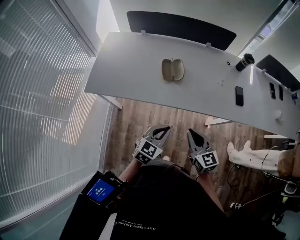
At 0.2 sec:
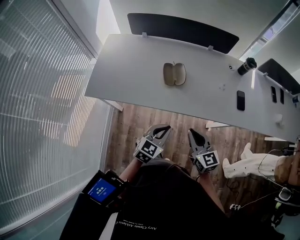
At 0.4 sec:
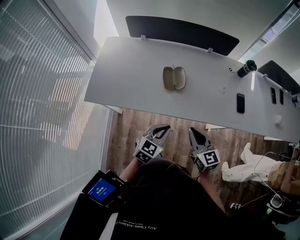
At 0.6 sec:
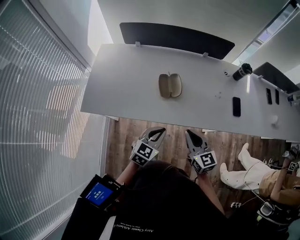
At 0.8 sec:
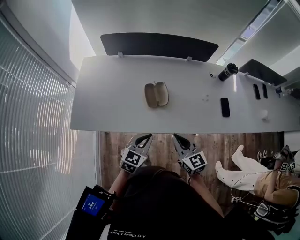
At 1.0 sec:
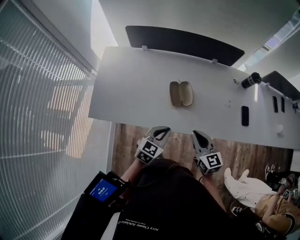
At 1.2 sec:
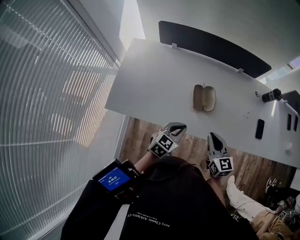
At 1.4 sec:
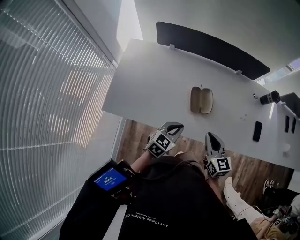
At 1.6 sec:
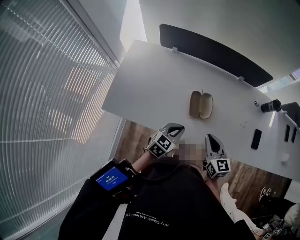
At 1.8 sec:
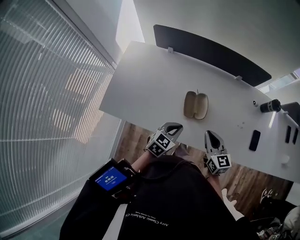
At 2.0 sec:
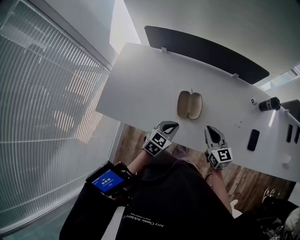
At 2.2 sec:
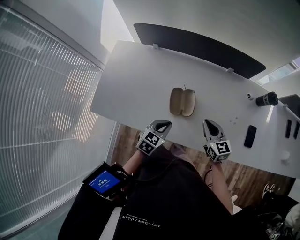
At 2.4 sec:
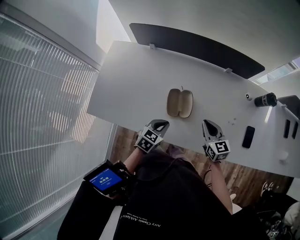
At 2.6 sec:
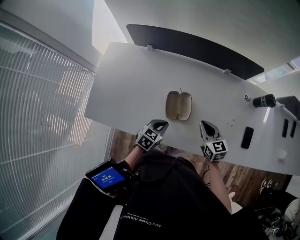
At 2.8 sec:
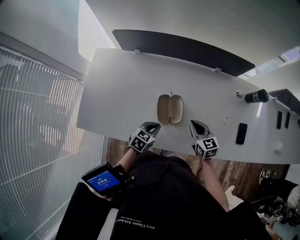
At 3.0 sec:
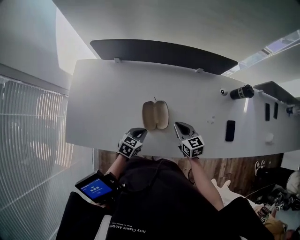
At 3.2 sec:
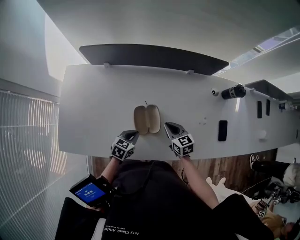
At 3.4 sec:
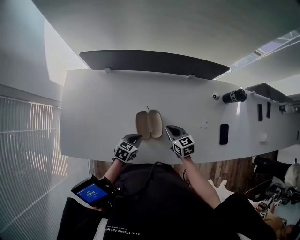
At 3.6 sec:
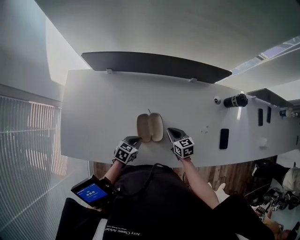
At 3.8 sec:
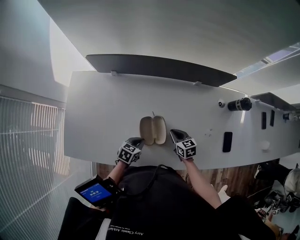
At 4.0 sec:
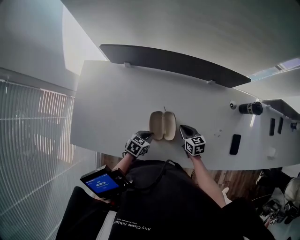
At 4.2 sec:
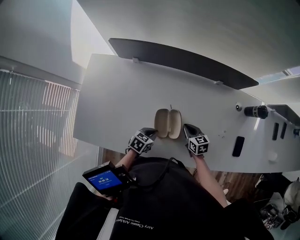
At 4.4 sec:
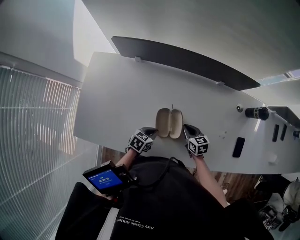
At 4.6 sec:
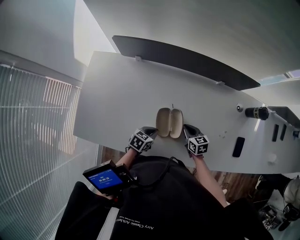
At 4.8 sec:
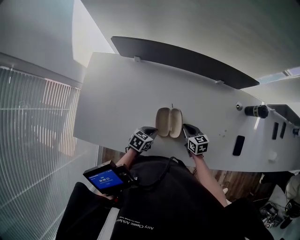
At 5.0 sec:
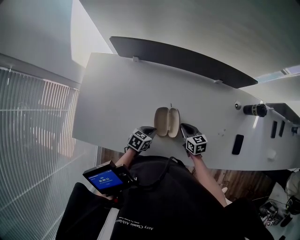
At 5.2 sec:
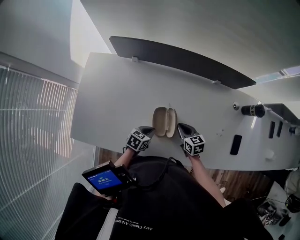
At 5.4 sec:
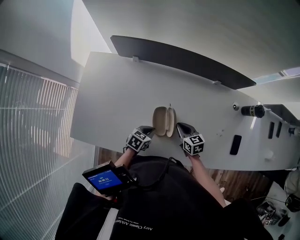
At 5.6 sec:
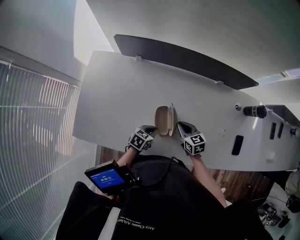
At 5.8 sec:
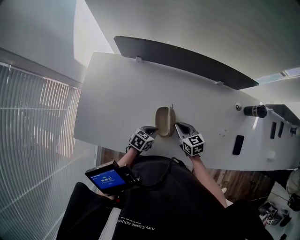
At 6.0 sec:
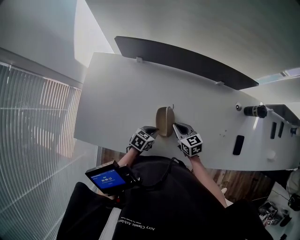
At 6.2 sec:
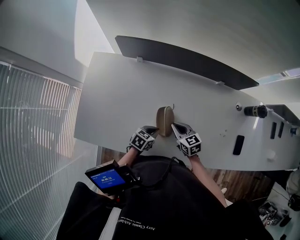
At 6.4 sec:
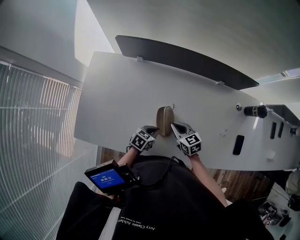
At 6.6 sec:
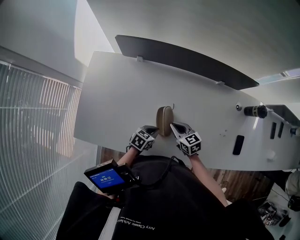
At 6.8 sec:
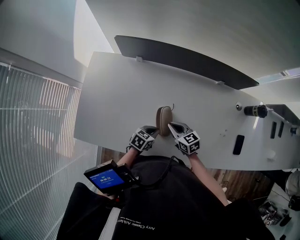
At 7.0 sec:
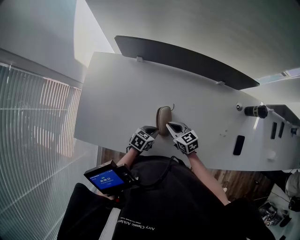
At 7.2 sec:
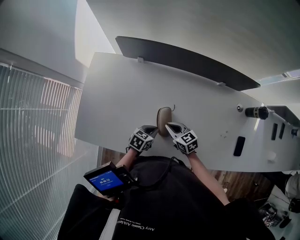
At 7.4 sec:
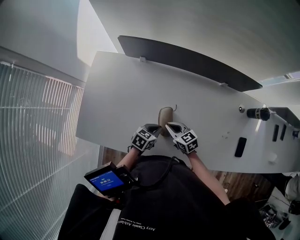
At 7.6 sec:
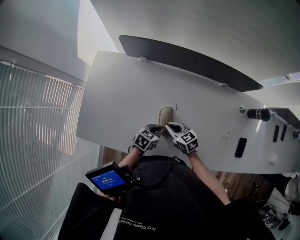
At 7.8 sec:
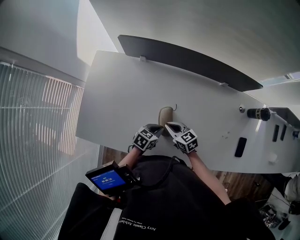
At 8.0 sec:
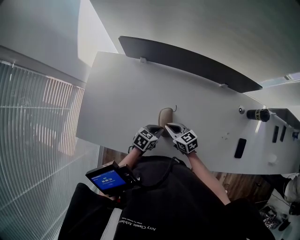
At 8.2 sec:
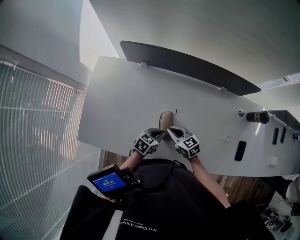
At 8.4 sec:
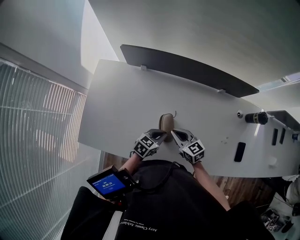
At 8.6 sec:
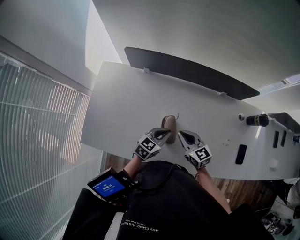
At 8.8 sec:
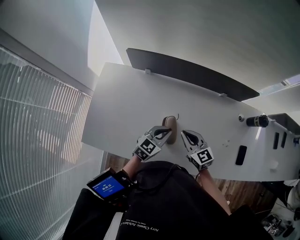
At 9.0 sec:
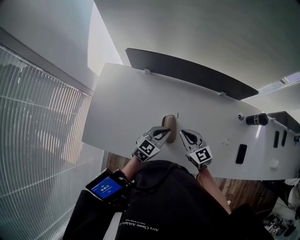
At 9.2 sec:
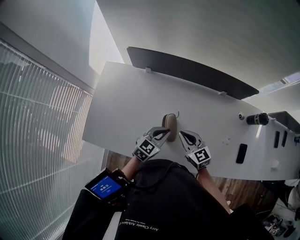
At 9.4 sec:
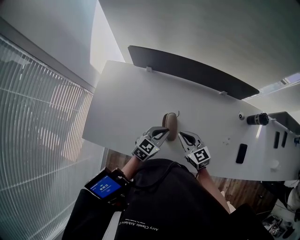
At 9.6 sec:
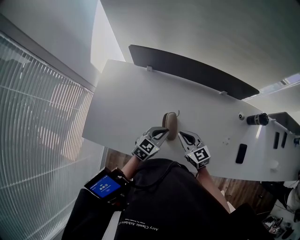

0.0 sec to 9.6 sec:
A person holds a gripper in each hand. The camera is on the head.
0.0 sec to 1.6 sec: The right gripper goes about 20 cm forward; the left gripper is displaced forward and to the left by some 25 cm.
1.6 sec to 3.2 sec: The right gripper shifts roughly 20 cm forward and downward; the left gripper moves downward and forward, approximately 15 cm.
3.2 sec to 4.8 sec: The right gripper is displaced downward by approximately 5 cm.
4.8 sec to 6.4 sec: The right gripper goes some 10 cm to the left.
6.4 sec to 8.0 sec: The grippers move only a little.
8.0 sec to 9.6 sec: The two grippers go some 10 cm upward. The left gripper rotates approximately 30 degrees.

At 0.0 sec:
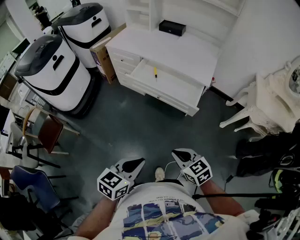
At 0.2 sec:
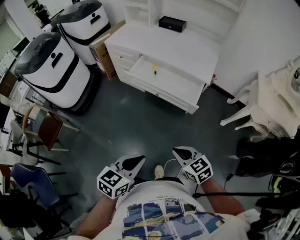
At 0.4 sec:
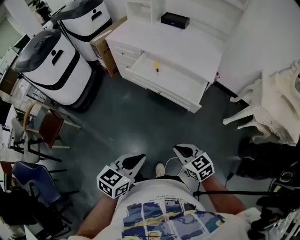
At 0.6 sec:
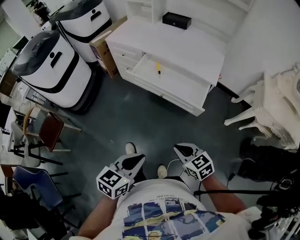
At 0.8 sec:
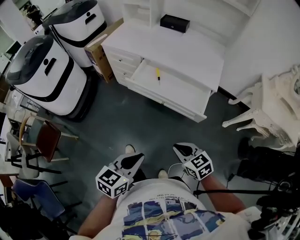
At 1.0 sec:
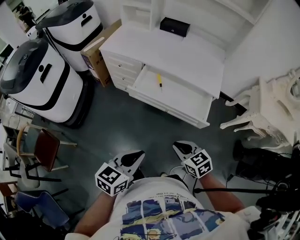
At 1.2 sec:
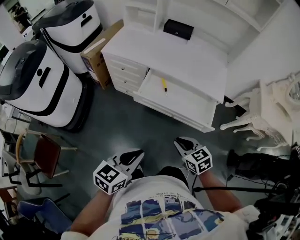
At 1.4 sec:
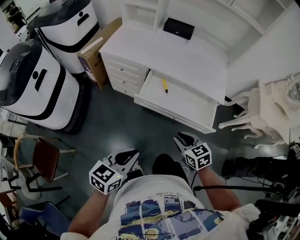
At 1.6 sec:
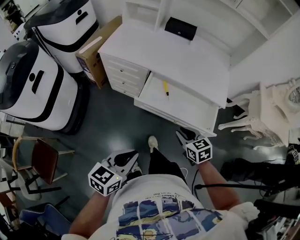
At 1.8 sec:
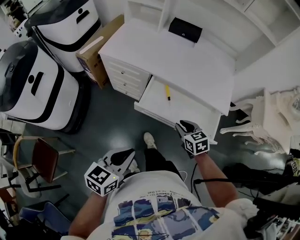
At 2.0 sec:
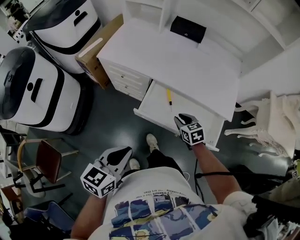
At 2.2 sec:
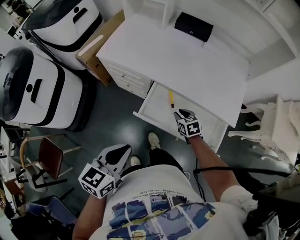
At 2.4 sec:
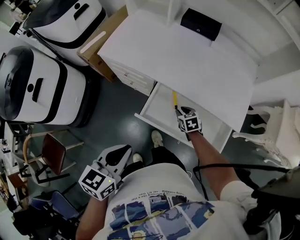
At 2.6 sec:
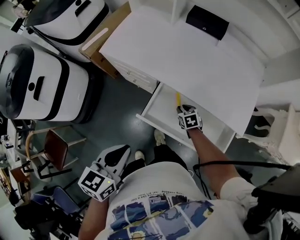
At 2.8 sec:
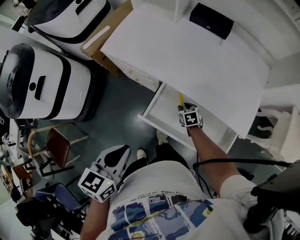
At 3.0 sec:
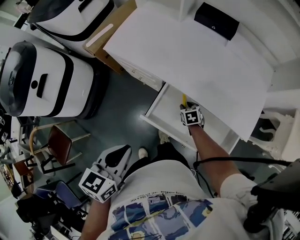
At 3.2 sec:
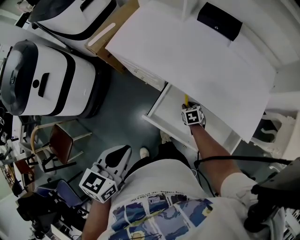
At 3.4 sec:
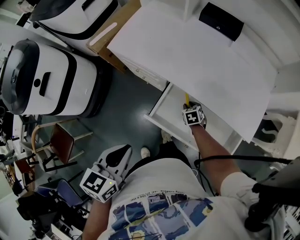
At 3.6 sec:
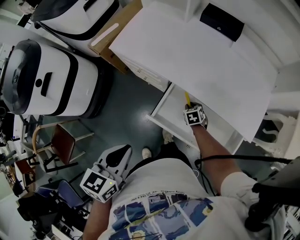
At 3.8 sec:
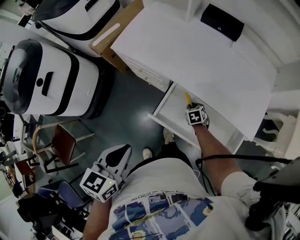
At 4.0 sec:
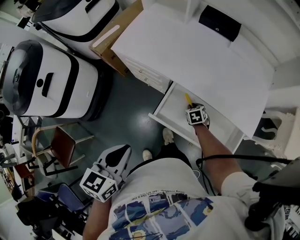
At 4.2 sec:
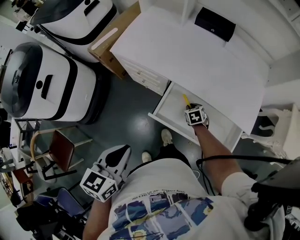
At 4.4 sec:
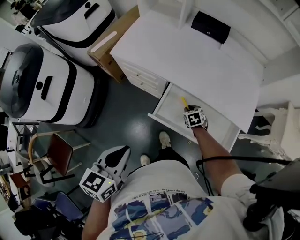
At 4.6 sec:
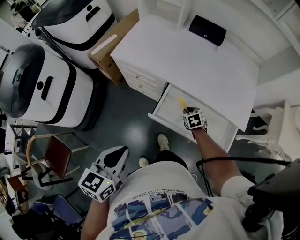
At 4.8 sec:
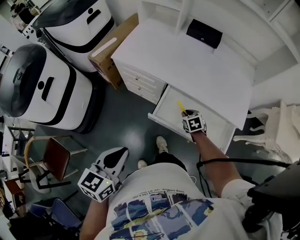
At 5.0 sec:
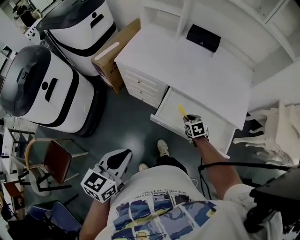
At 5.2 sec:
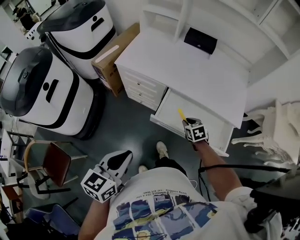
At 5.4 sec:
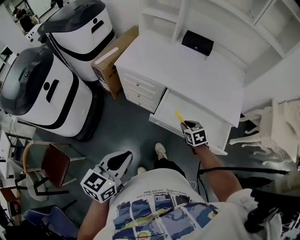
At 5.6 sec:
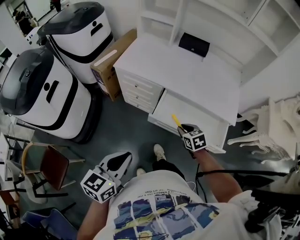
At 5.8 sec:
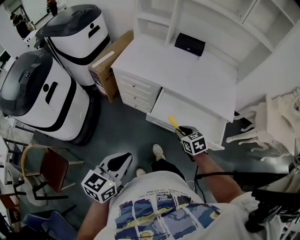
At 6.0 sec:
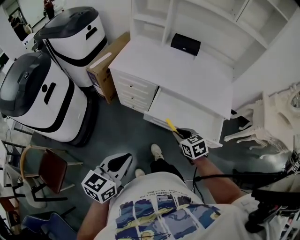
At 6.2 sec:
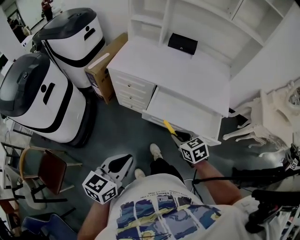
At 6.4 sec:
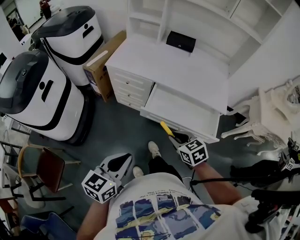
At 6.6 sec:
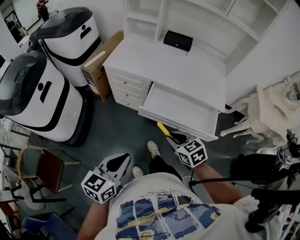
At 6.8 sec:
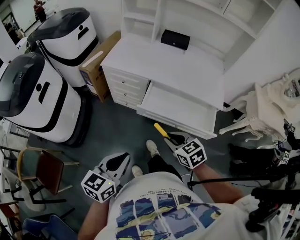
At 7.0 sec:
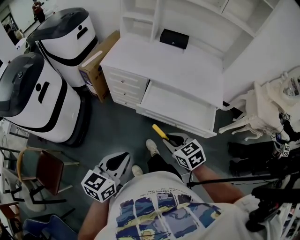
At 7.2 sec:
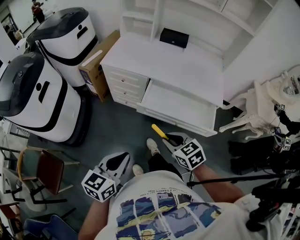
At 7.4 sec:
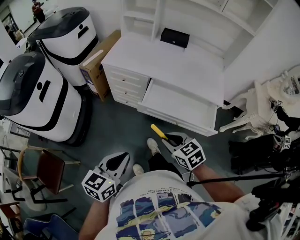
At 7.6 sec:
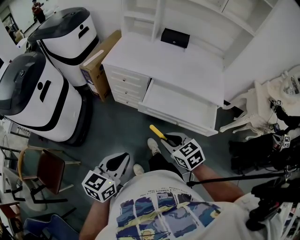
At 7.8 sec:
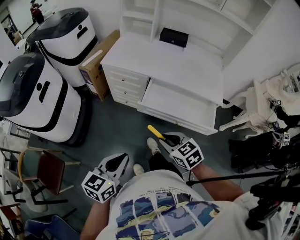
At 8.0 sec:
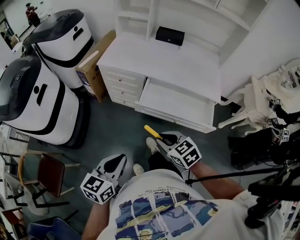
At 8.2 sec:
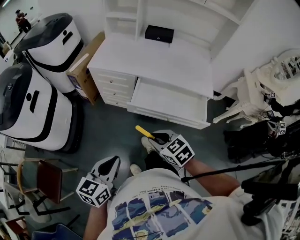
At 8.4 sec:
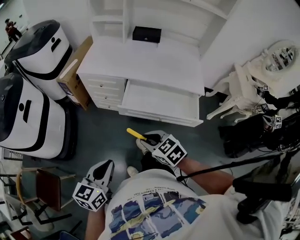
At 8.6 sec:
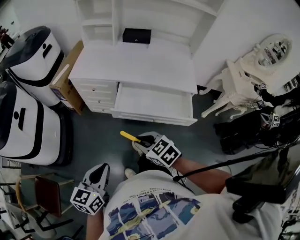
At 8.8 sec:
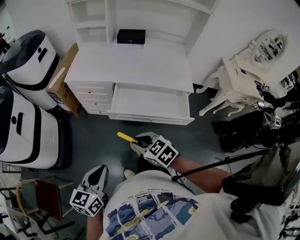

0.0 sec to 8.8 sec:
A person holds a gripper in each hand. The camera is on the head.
0.0 sec to 1.4 sec: The two grippers go about 30 cm forward and to the left. The right gripper opens its fingers.
1.4 sec to 3.0 sec: The right gripper shifts some 40 cm forward and downward, and changes its angle by approximately 20 degrees. Meanwhile the left gripper travels forward by approximately 25 cm, and turns by roughly 30 degrees.
3.0 sec to 4.4 sec: The left gripper heads to the left, covering approximately 5 cm.
4.4 sec to 5.8 sec: The right gripper shifts approximately 25 cm upward and backward. The left gripper goes approximately 10 cm backward.
5.8 sec to 7.4 sec: The right gripper goes approximately 15 cm backward and upward. Meanwhile the left gripper goes some 5 cm backward.
7.4 sec to 8.8 sec: The grippers move only a little.

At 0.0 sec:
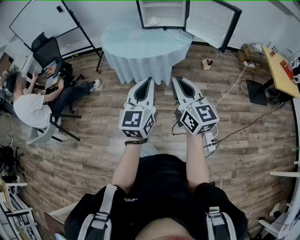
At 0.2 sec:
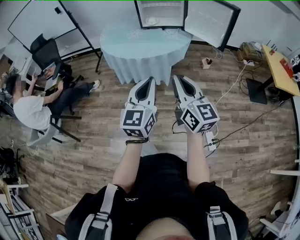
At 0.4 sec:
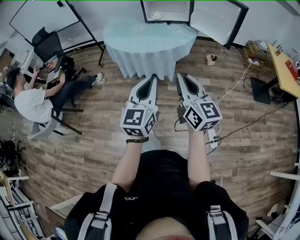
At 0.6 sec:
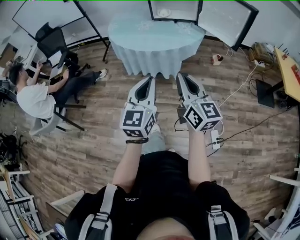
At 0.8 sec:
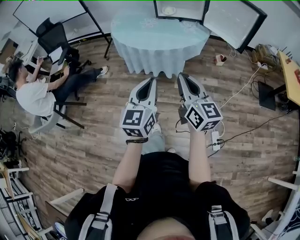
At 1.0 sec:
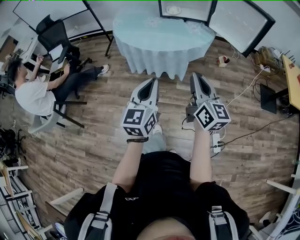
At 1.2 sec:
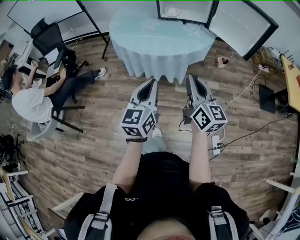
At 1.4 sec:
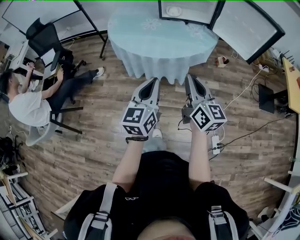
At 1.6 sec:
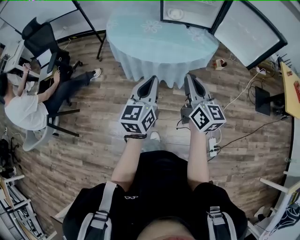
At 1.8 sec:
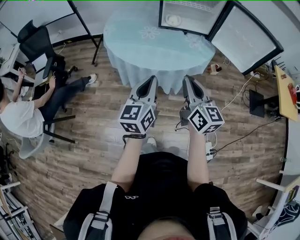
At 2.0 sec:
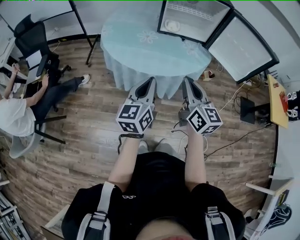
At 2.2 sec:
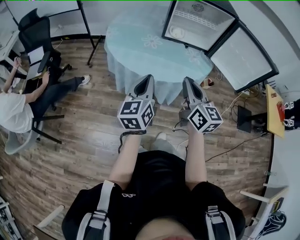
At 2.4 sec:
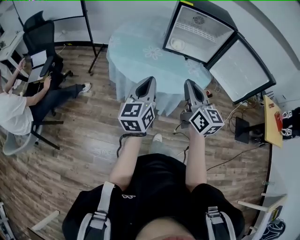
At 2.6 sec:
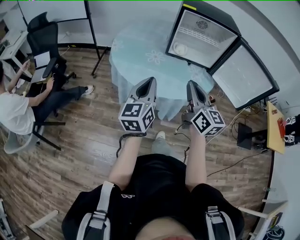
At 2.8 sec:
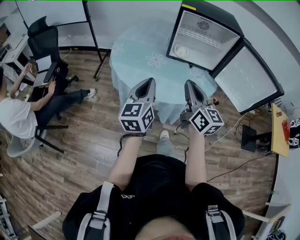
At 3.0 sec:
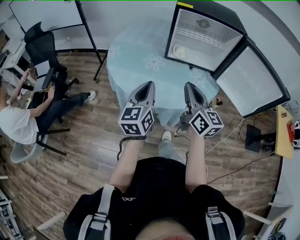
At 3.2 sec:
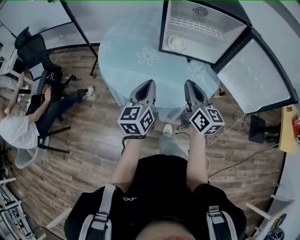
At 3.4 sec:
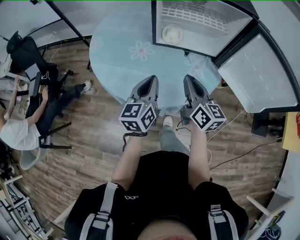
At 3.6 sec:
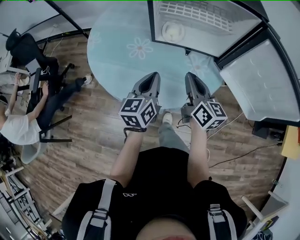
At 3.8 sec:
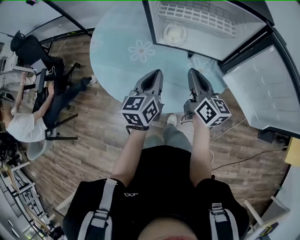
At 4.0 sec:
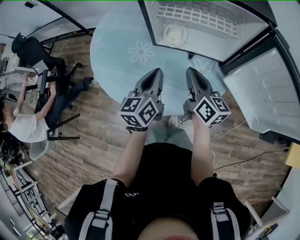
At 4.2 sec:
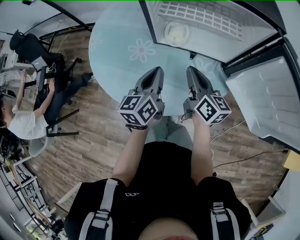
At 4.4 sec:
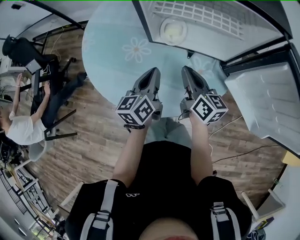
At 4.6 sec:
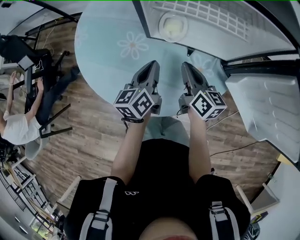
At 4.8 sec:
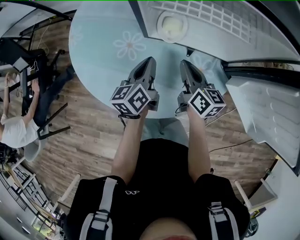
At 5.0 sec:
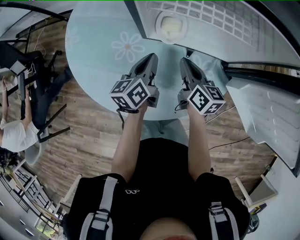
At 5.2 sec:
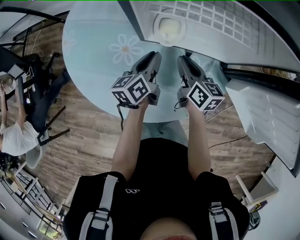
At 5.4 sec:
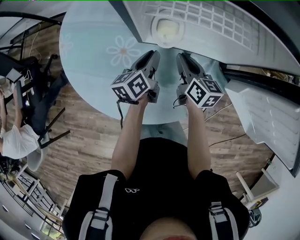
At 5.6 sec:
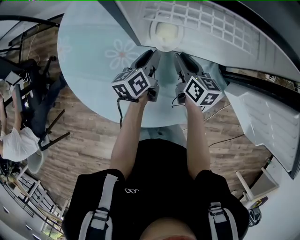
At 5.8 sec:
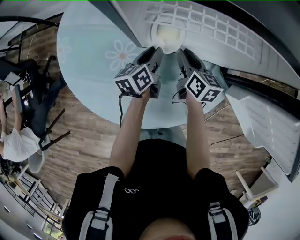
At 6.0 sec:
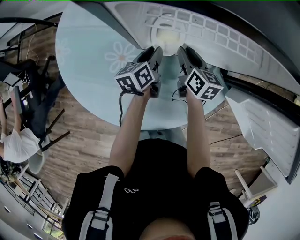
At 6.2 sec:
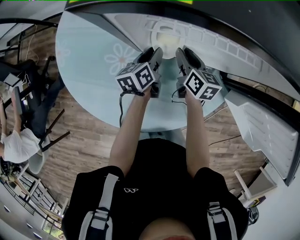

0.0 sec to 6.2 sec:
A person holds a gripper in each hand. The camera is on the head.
0.0 sec to 1.6 sec: The left gripper shifts roughly 25 cm forward and to the left; the right gripper goes about 25 cm forward.
1.6 sec to 3.2 sec: The grippers both shift forward by some 30 cm.
3.2 sec to 4.6 sec: The grippers both shift forward, downward and to the right by approximately 25 cm. The right gripper turns by approximately 20 degrees.
4.6 sec to 6.2 sec: The two grippers go approximately 20 cm forward and downward. The right gripper opens. The left gripper opens.
